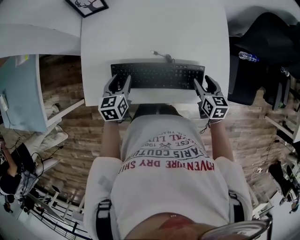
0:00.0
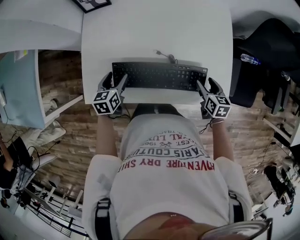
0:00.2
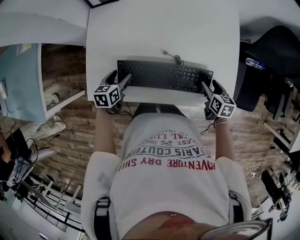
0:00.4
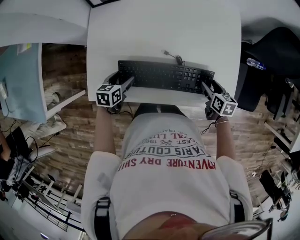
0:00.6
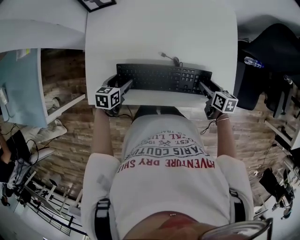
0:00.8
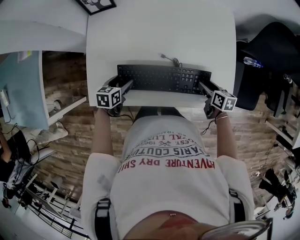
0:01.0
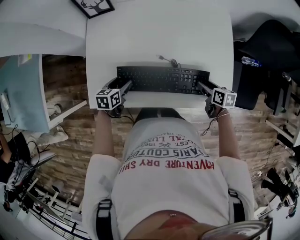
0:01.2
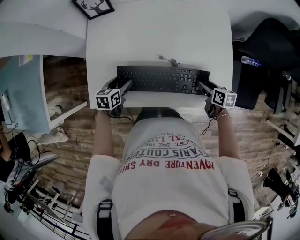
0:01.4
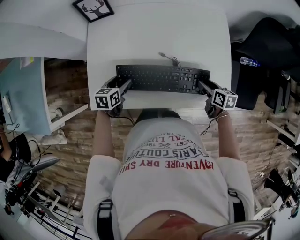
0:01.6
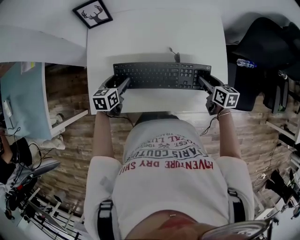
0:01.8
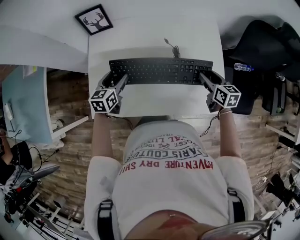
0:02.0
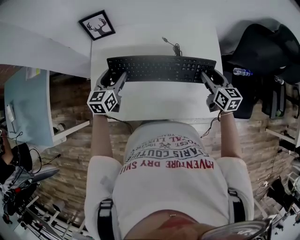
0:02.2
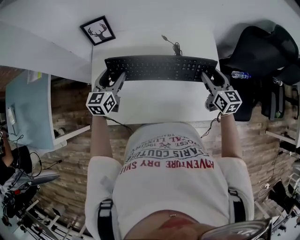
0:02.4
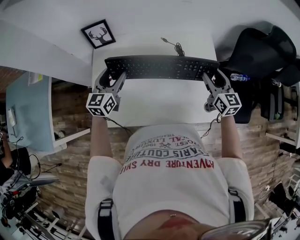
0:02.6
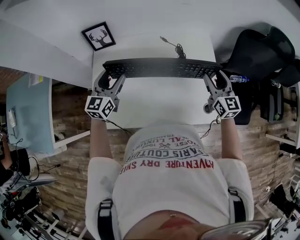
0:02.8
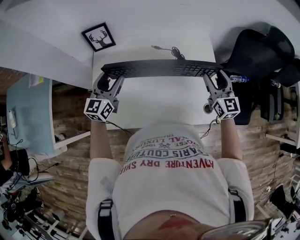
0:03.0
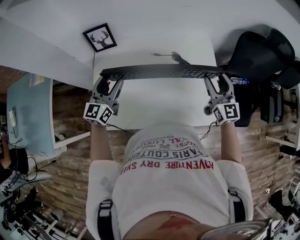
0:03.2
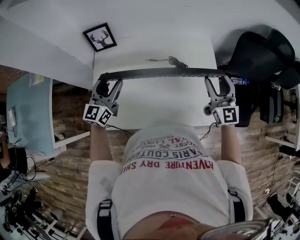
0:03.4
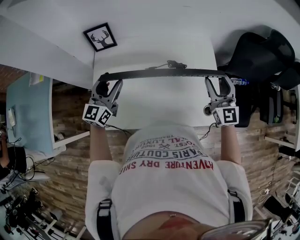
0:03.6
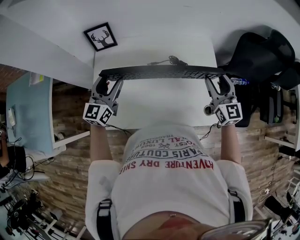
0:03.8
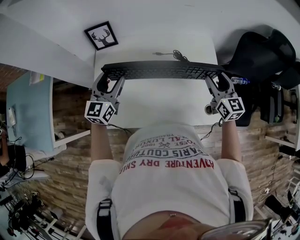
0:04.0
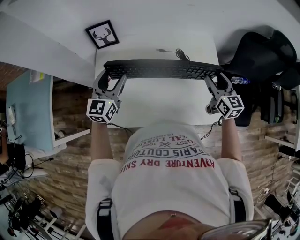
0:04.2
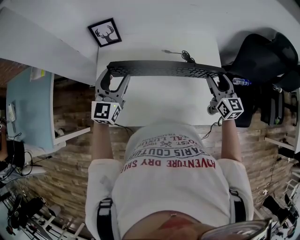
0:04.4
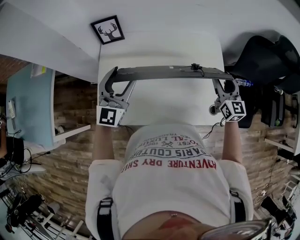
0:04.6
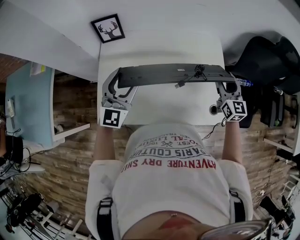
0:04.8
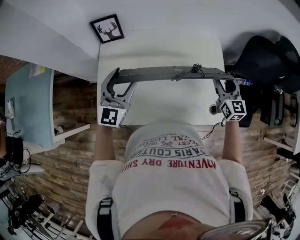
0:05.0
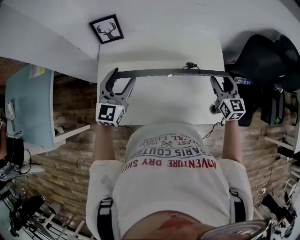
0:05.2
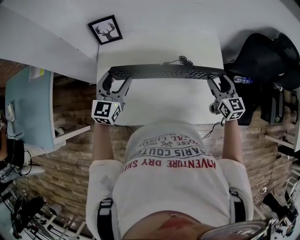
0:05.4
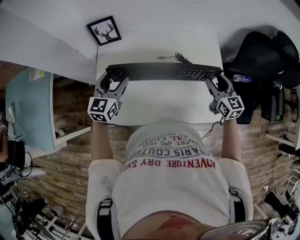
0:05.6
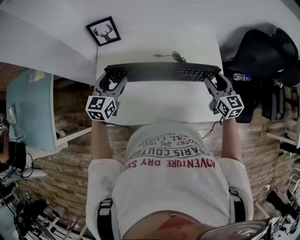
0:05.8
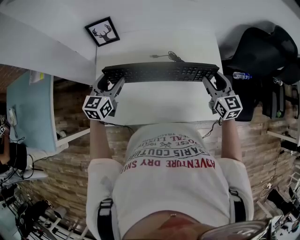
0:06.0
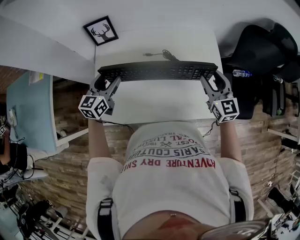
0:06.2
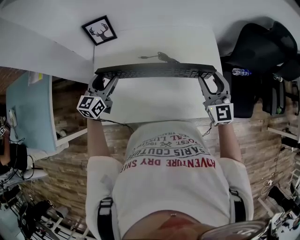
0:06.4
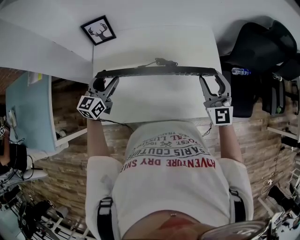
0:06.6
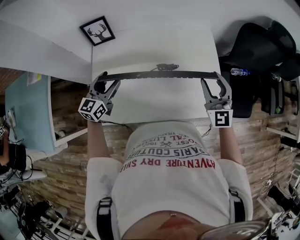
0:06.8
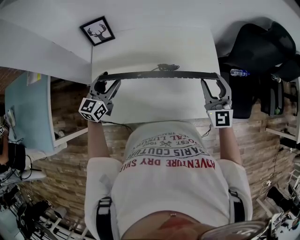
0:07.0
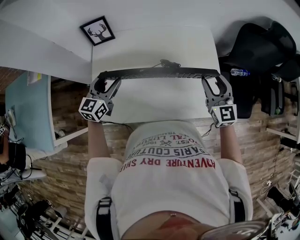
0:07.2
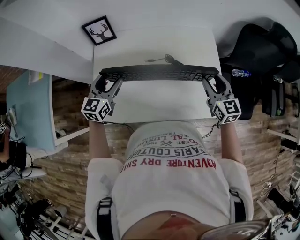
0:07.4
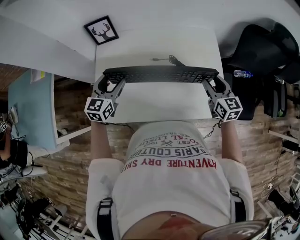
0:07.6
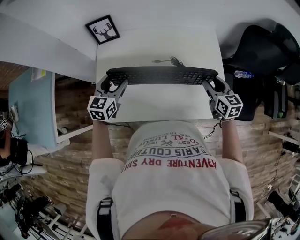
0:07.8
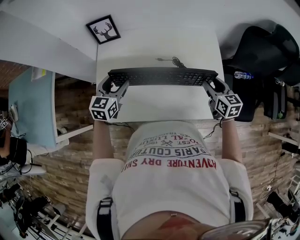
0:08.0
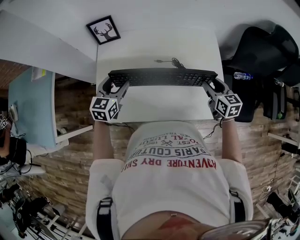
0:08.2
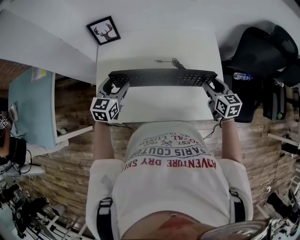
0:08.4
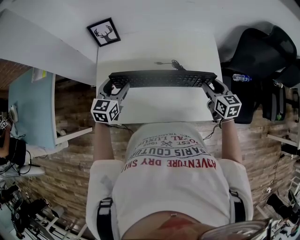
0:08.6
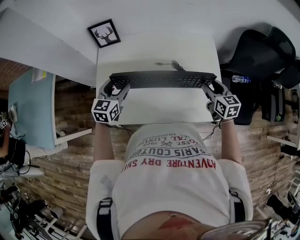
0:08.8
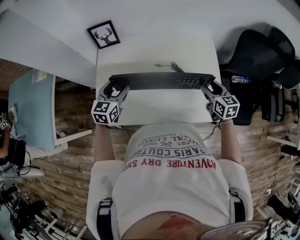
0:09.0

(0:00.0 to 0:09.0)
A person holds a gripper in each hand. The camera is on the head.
0:00.0 - 0:01.6: The left gripper shifts roughly 5 cm downward, and opens its fingers.
0:01.6 - 0:03.0: Both grippers travel together upward, approximately 25 cm. The left gripper tips its fingers upward by roughly 40 degrees. The right gripper tips its fingers upward by approximately 40 degrees.
0:03.0 - 0:04.4: The grippers make only small movements.
0:04.4 - 0:06.0: The left gripper shifts roughly 5 cm downward, and rotates approximately 20 degrees.
0:06.0 - 0:07.6: The right gripper travels upward and back again, roughly 5 cm each way.
0:07.6 - 0:09.0: The grippers move only a little.

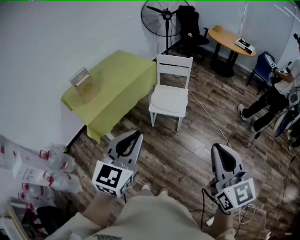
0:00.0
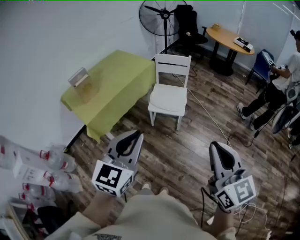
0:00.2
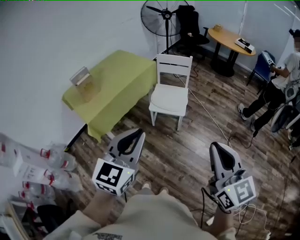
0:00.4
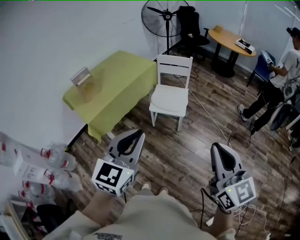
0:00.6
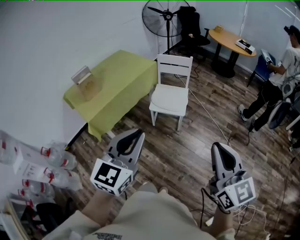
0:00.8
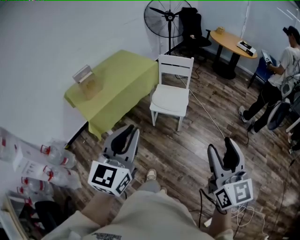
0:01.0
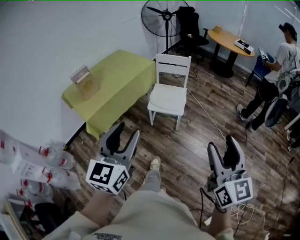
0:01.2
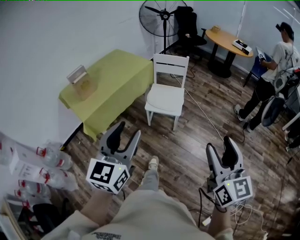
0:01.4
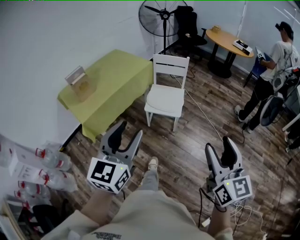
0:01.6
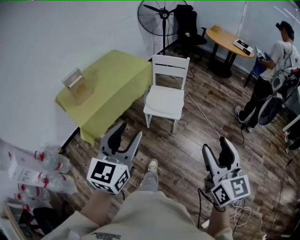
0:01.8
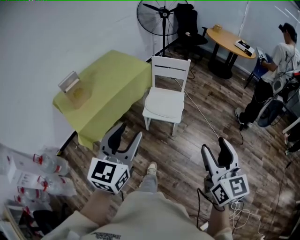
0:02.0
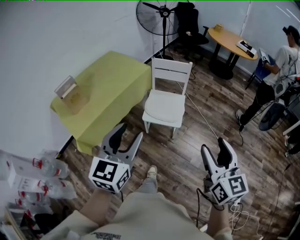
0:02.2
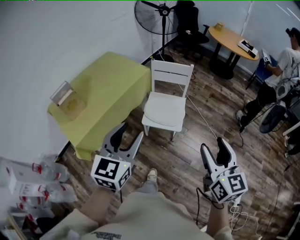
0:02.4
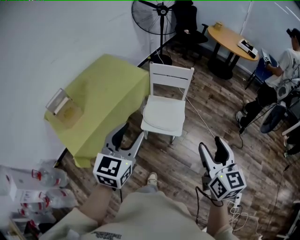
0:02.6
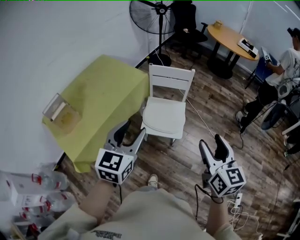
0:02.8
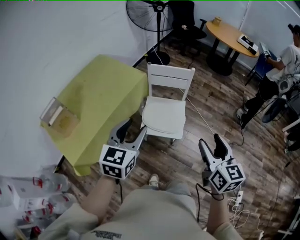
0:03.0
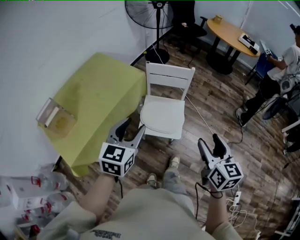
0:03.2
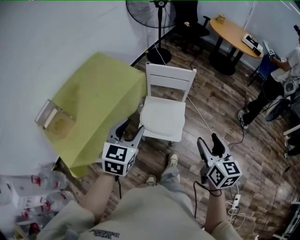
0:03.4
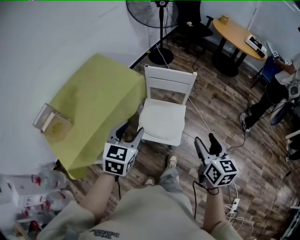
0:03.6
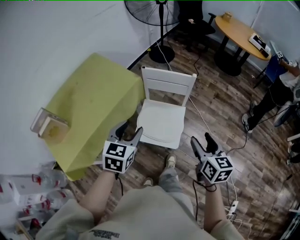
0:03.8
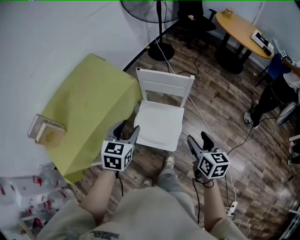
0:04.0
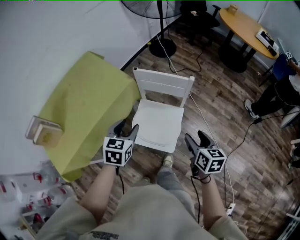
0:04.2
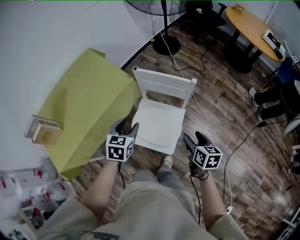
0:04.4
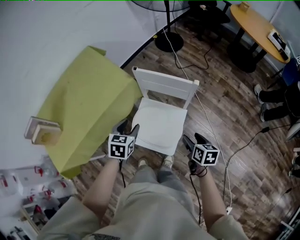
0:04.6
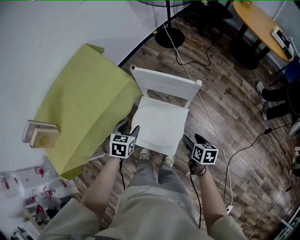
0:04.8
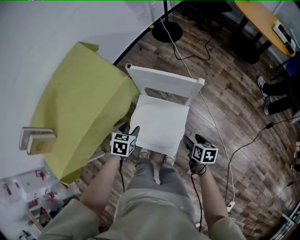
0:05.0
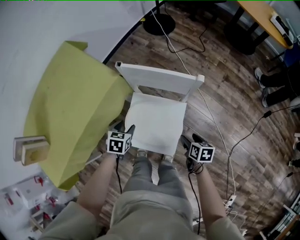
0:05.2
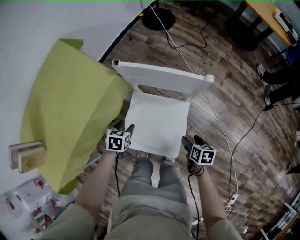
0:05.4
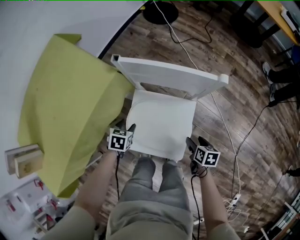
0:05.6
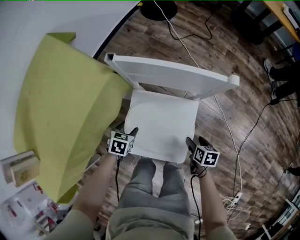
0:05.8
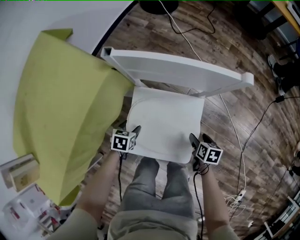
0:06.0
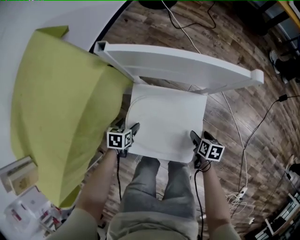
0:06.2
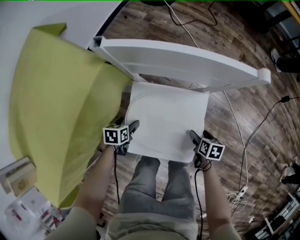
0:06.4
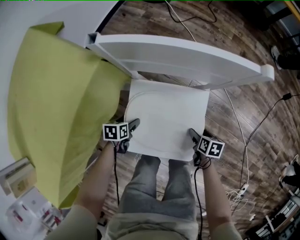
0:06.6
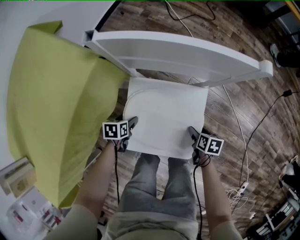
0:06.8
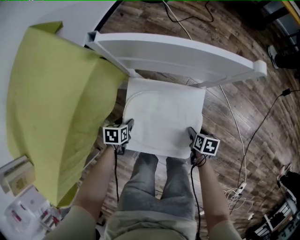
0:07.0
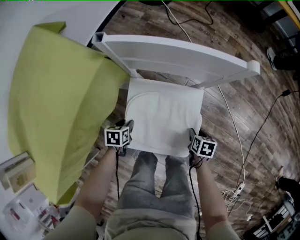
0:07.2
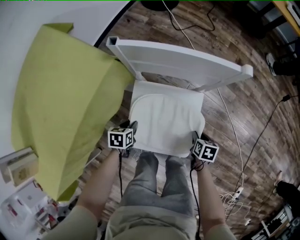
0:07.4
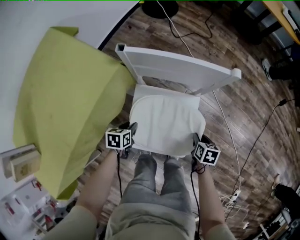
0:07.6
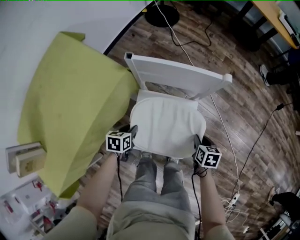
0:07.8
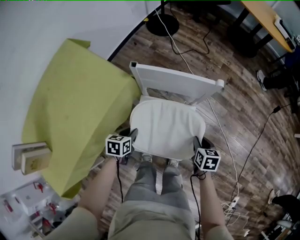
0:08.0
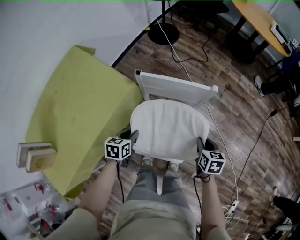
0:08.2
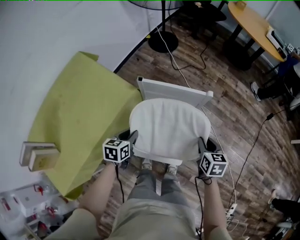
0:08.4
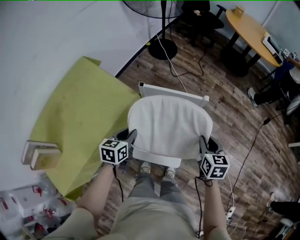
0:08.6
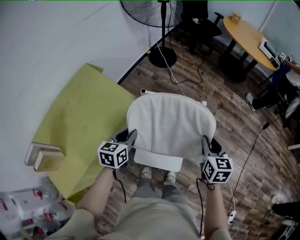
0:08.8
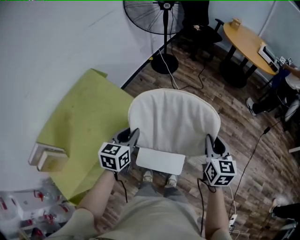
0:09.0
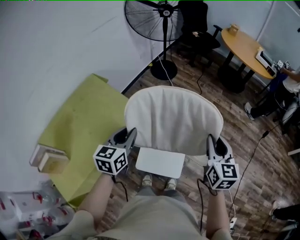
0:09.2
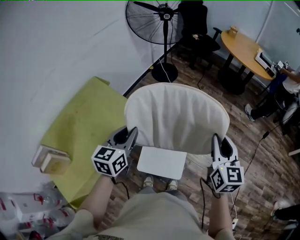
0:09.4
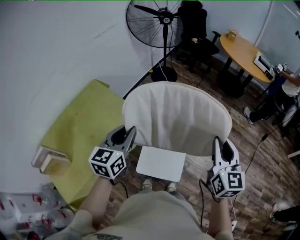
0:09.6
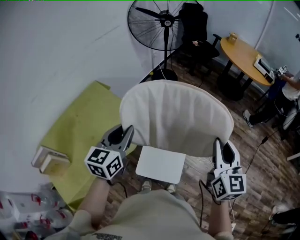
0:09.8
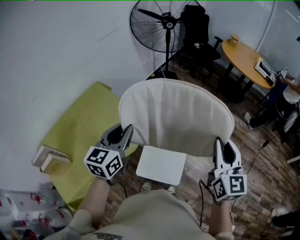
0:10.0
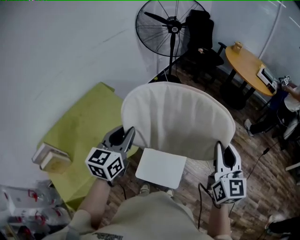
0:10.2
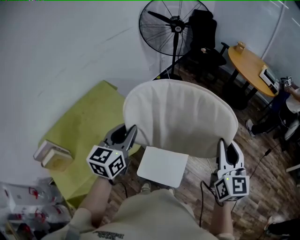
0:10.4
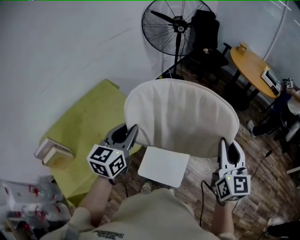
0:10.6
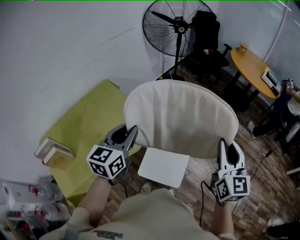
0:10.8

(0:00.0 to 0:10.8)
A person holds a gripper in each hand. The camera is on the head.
0:00.0 - 0:01.6: The right gripper shifts by roughly 5 cm, and opens its fingers. Meanwhile the left gripper opens.
0:01.6 - 0:03.0: Both grippers move forward, roughly 35 cm.
0:03.0 - 0:04.6: The left gripper goes approximately 35 cm forward and downward, and changes its angle by approximately 30 degrees. The right gripper goes approximately 40 cm downward and forward, and rotates some 40 degrees.
0:04.6 - 0:06.2: Both grippers move downward, some 35 cm. The right gripper turns by approximately 30 degrees. Meanwhile the left gripper turns by approximately 30 degrees, and opens up.
0:06.2 - 0:07.8: The grippers both shift upward by about 15 cm. The right gripper closes up. Meanwhile the left gripper closes.
0:07.8 - 0:09.2: Both grippers move upward, approximately 40 cm. The left gripper tips its fingers upward by some 30 degrees; the right gripper points its fingers some 40 degrees further upward.
0:09.2 - 0:10.8: Both grippers travel together upward, approximately 10 cm.

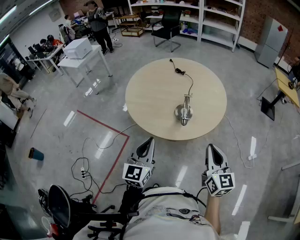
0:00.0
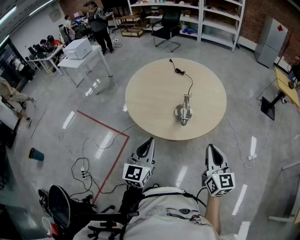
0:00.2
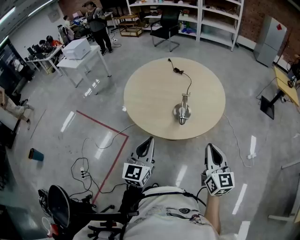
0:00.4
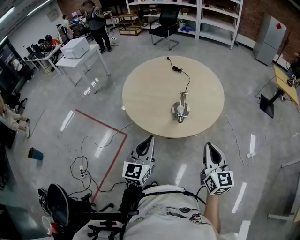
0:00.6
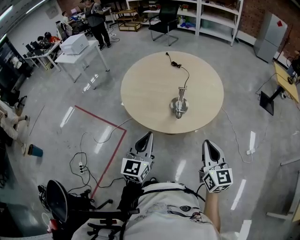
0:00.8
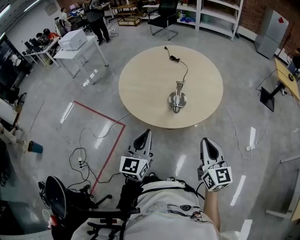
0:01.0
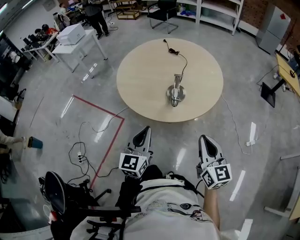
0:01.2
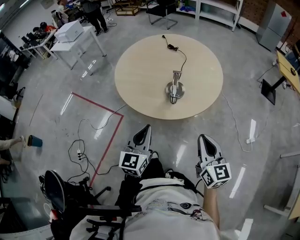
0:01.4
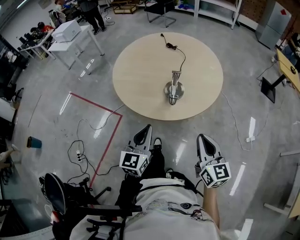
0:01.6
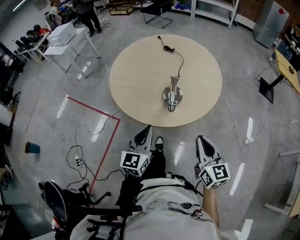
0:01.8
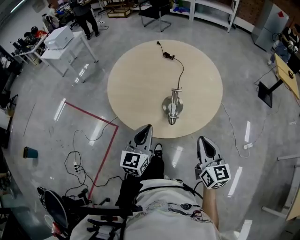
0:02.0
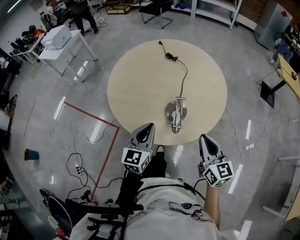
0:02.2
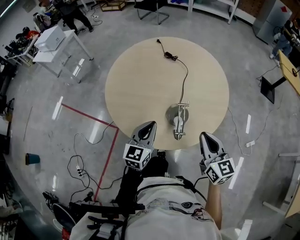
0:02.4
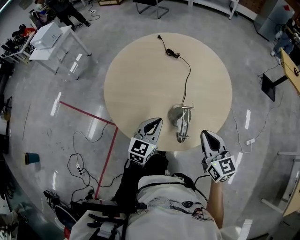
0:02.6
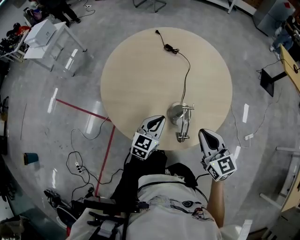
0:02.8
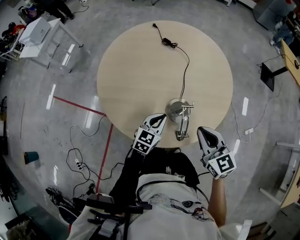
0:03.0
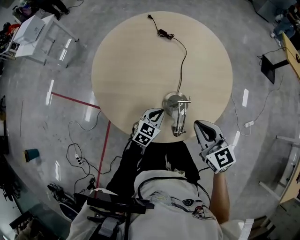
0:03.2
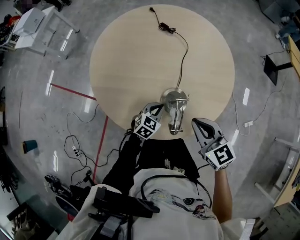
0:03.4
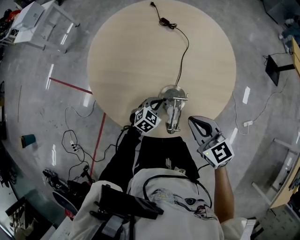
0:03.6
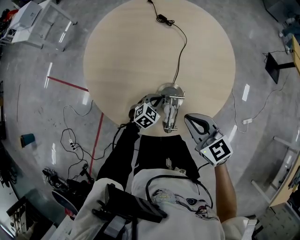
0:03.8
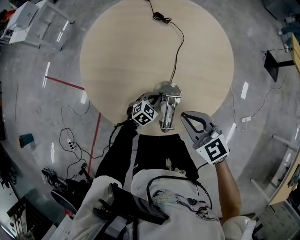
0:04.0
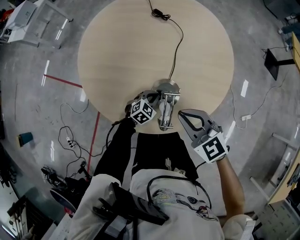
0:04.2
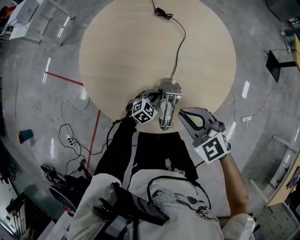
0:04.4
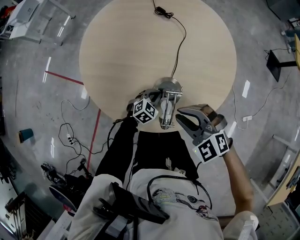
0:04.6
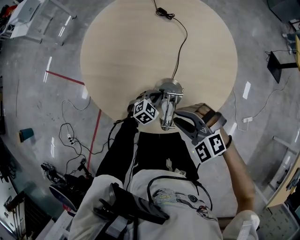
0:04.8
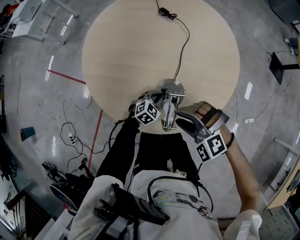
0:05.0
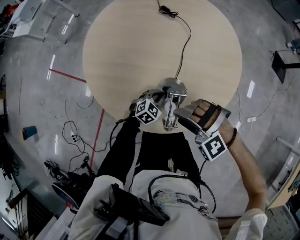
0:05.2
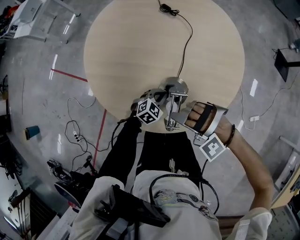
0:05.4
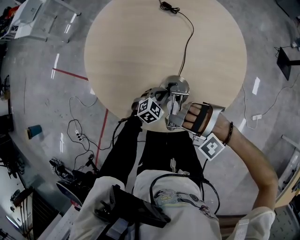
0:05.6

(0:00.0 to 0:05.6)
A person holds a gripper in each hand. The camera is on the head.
0:00.0 - 0:01.4: The left gripper shifts some 10 cm to the right and downward. The right gripper travels downward by approximately 5 cm.
0:01.4 - 0:02.8: Both grippers travel together forward, approximately 30 cm. The left gripper rotates some 30 degrees.
0:02.8 - 0:04.2: The right gripper heads downward, covering roughly 5 cm, and changes its angle by roughly 30 degrees. Meanwhile the left gripper shifts about 20 cm downward, and rotates some 30 degrees.
0:04.2 - 0:05.6: The right gripper goes roughly 10 cm downward, rotates around the line of its fingers by about 90 degrees, counterclockwise from behind, and opens its fingers.
